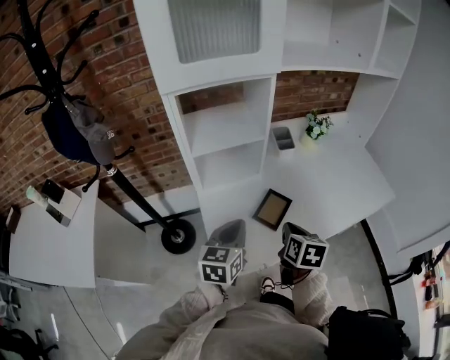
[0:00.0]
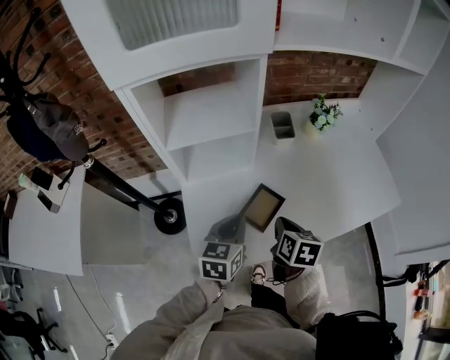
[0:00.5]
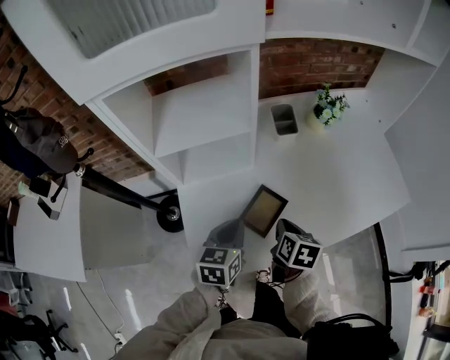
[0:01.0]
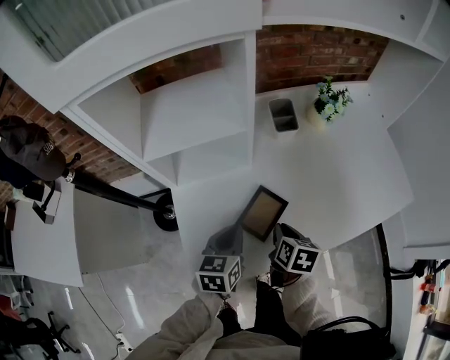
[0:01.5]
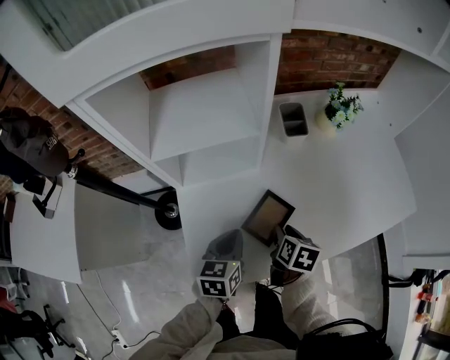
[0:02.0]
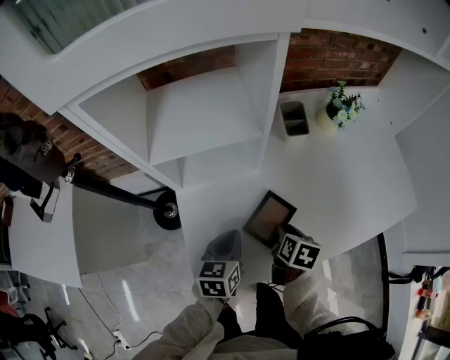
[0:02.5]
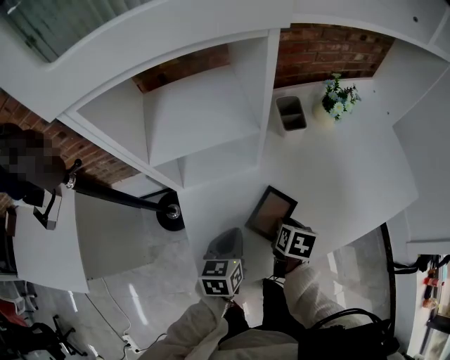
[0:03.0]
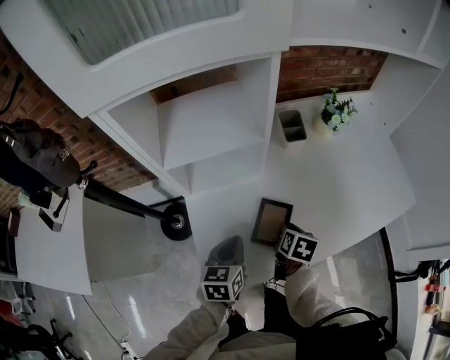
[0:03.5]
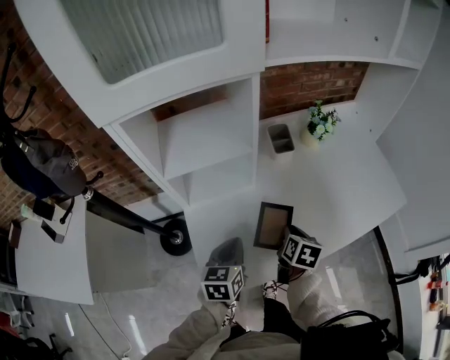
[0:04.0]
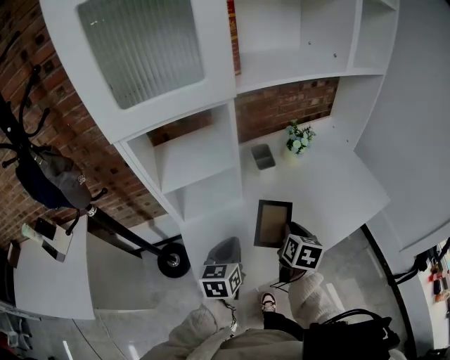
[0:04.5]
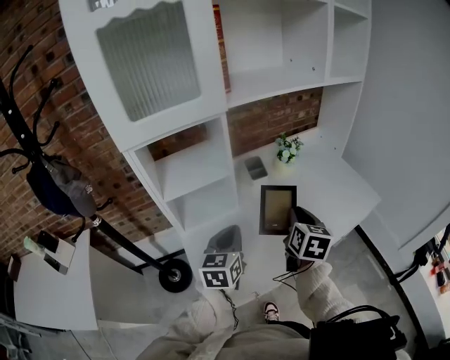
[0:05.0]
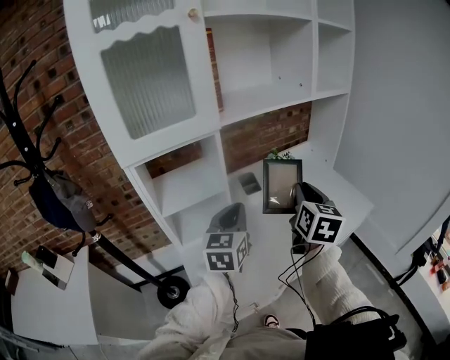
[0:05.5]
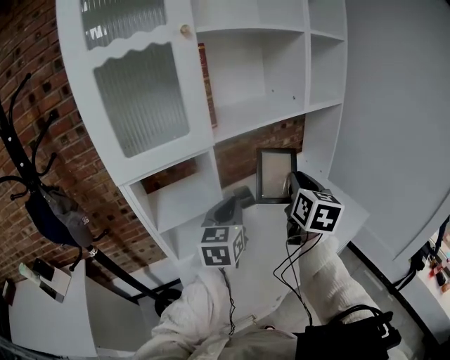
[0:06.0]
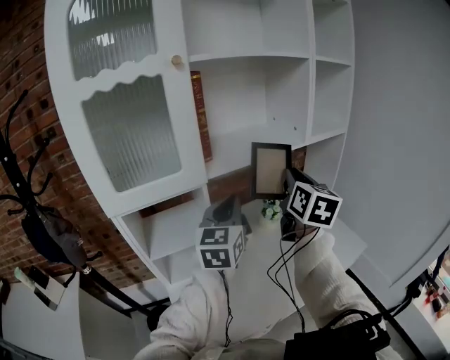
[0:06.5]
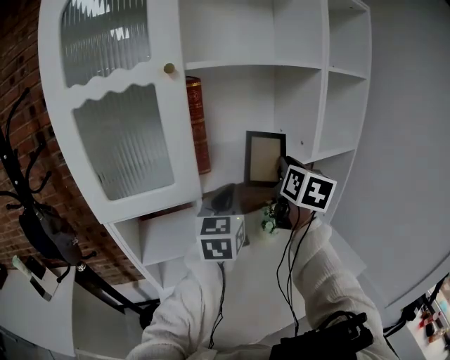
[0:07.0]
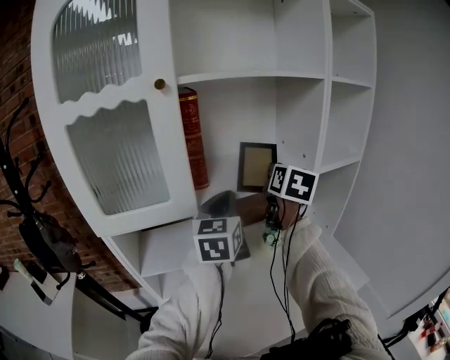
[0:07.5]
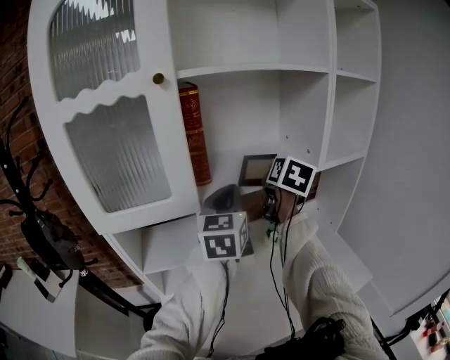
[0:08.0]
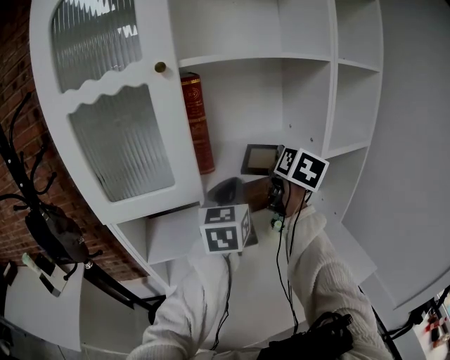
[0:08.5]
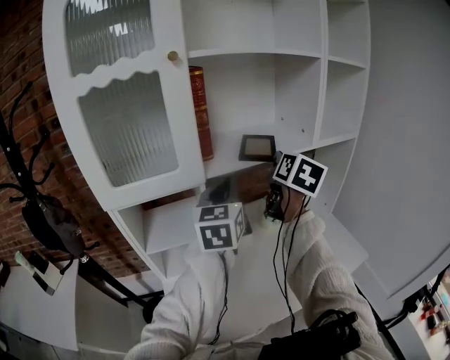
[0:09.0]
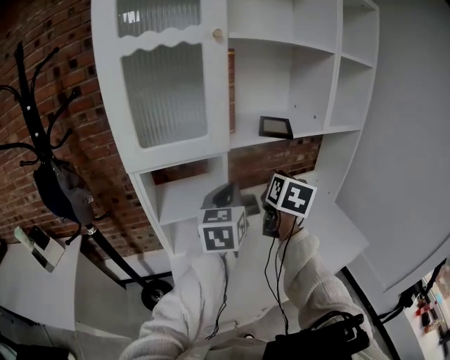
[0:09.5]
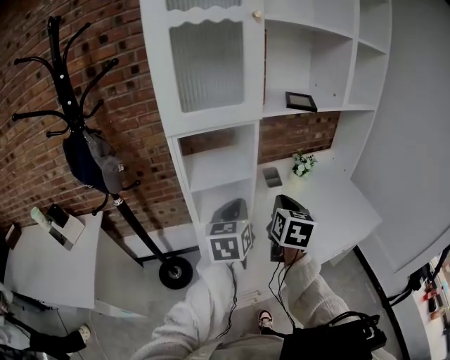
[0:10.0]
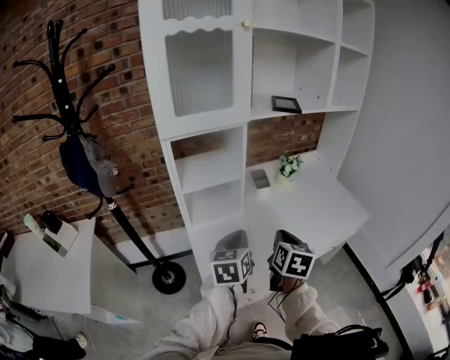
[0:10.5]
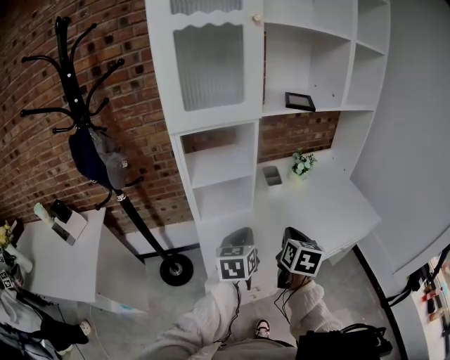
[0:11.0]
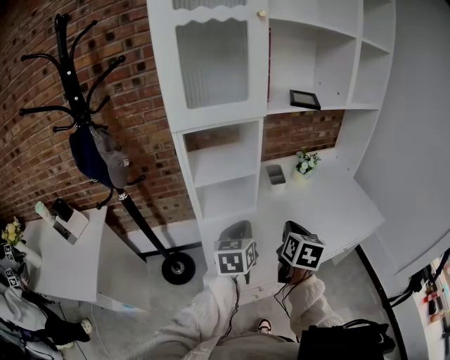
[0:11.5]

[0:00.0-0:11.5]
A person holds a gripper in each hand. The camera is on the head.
0:00.0 to 0:02.0: The two grippers go approximately 15 cm downward and forward. The right gripper opens up.
0:02.0 to 0:04.0: The right gripper moves some 5 cm.
0:04.0 to 0:06.0: Both grippers travel together upward, approximately 35 cm. The right gripper points its fingers about 40 degrees further upward. The left gripper changes its angle by approximately 30 degrees.
0:06.0 to 0:07.5: Both grippers travel together forward and upward, approximately 25 cm.
0:07.5 to 0:09.5: The left gripper travels backward, downward and to the left by about 15 cm, while the right gripper travels backward and downward by approximately 20 cm.
0:09.5 to 0:11.5: The left gripper moves downward and backward, approximately 25 cm, while the right gripper goes roughly 25 cm backward and downward.

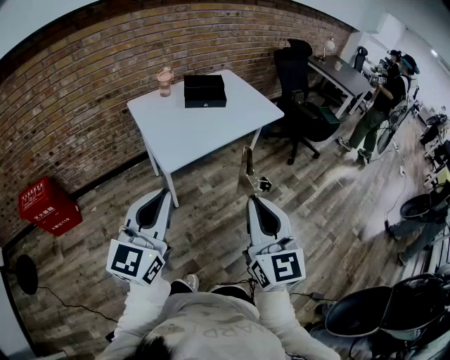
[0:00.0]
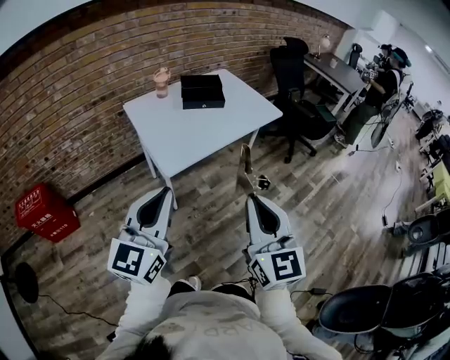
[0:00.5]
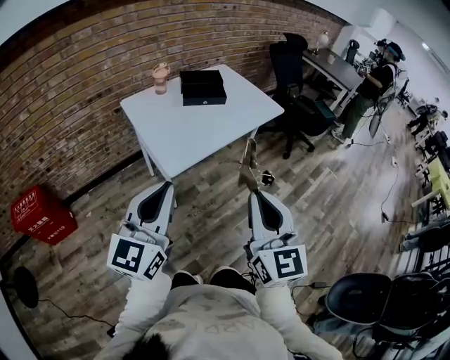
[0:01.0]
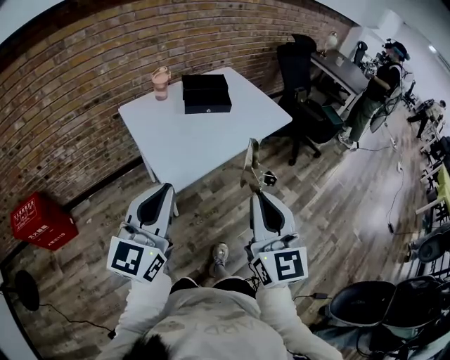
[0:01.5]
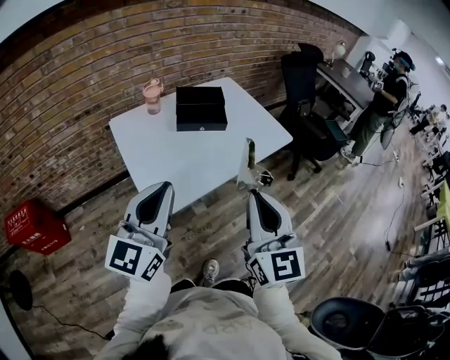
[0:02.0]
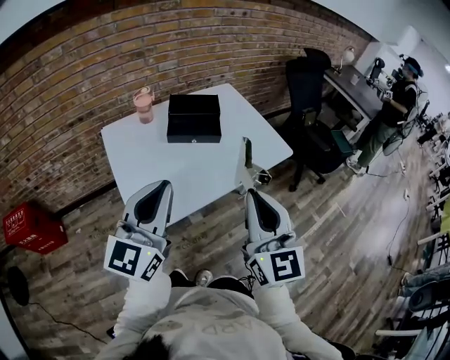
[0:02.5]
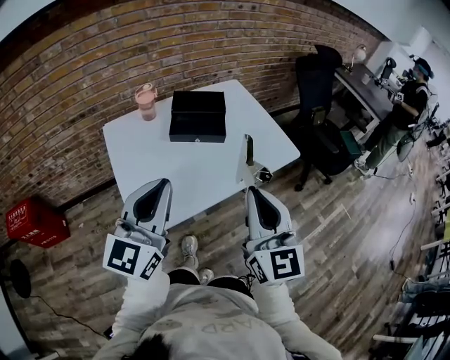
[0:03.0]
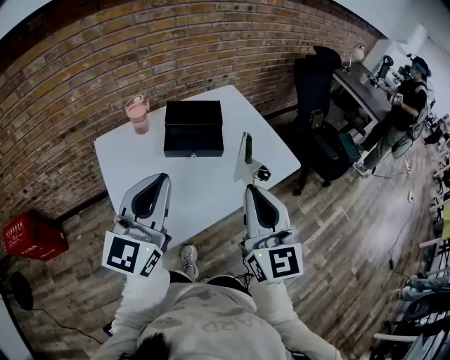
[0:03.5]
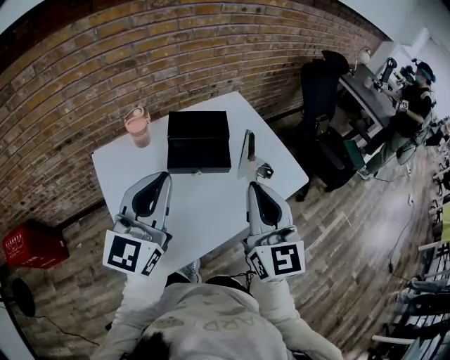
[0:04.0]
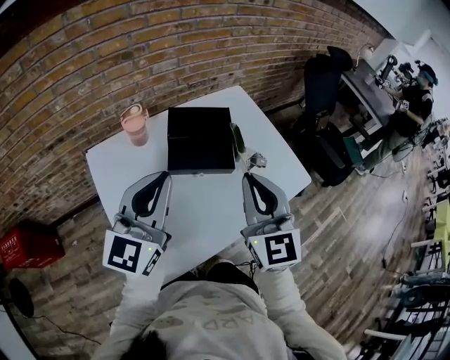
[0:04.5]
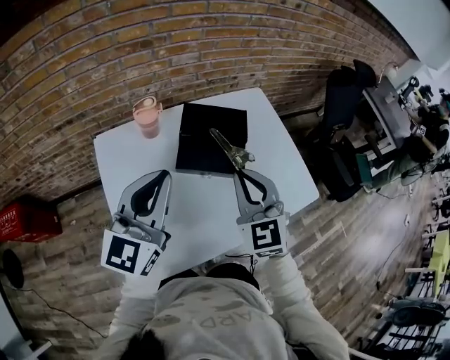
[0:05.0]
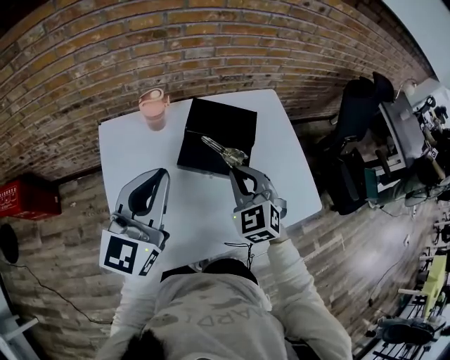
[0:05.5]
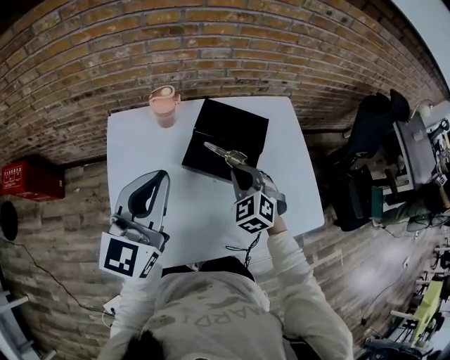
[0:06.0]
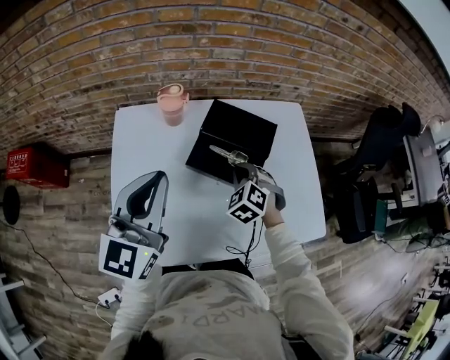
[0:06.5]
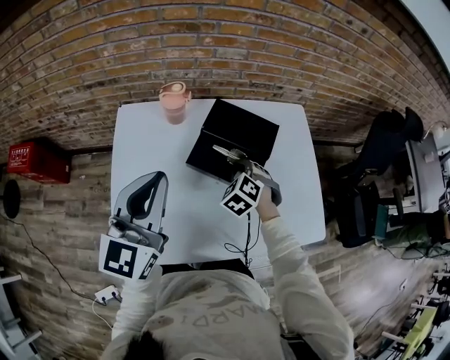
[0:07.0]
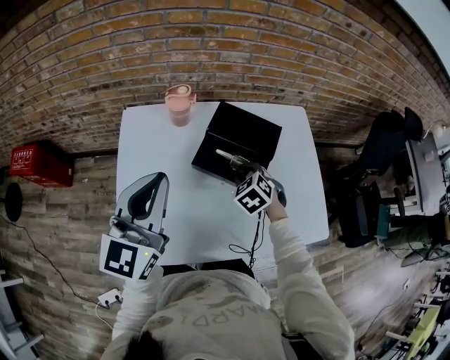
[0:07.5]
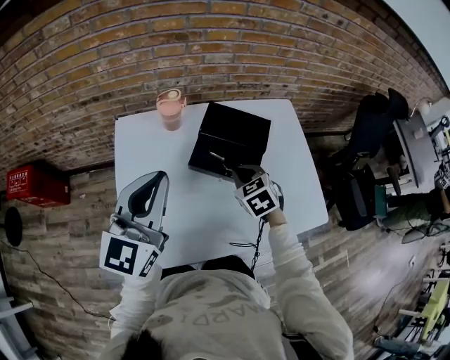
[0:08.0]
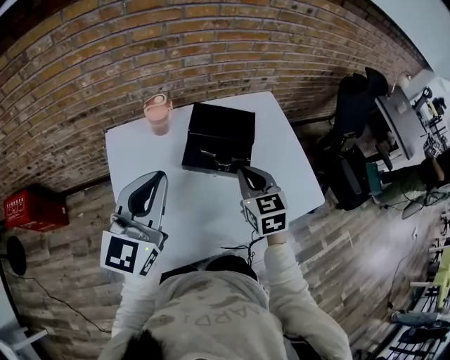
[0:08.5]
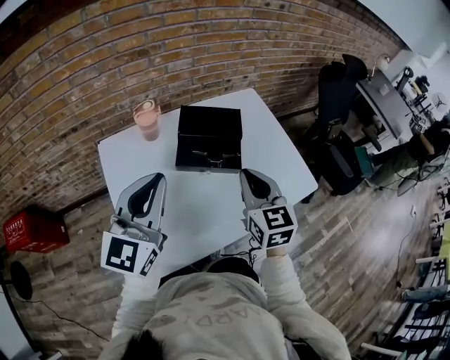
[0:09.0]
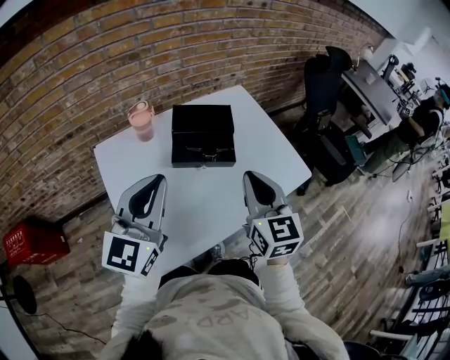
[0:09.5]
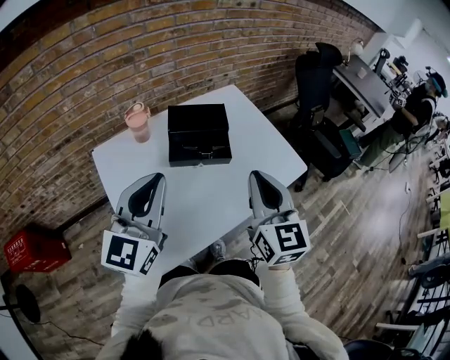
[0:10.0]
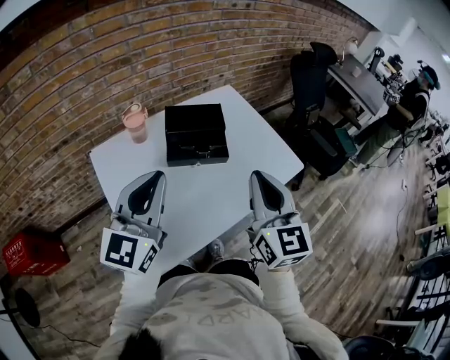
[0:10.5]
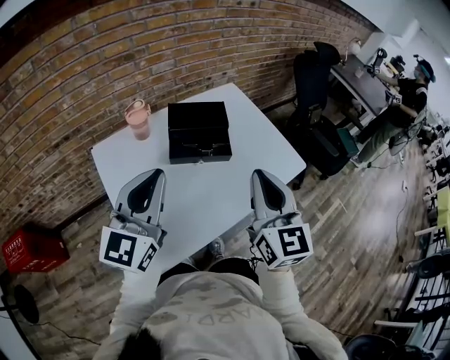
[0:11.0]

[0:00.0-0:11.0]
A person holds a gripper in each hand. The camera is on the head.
0:00.0 to 0:02.0: Both grippers travel together forward, approximately 25 cm.
0:02.0 to 0:03.5: Both grippers move forward, roughly 20 cm.
0:03.5 to 0:05.5: The left gripper goes roughly 15 cm forward; the right gripper is displaced forward and downward by approximately 30 cm, and points its fingers approximately 30 degrees further downward.
0:05.5 to 0:07.5: The right gripper shifts roughly 15 cm downward and forward, and changes its angle by roughly 30 degrees.
0:07.5 to 0:09.0: The right gripper heads upward and backward, covering some 25 cm, and angles its fingers upward, by roughly 40 degrees. Meanwhile the left gripper turns by roughly 20 degrees.
0:09.0 to 0:11.0: The right gripper moves backward and upward, approximately 15 cm.

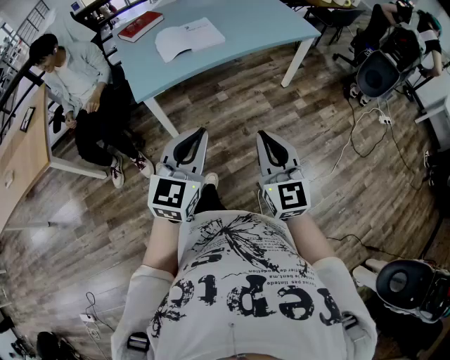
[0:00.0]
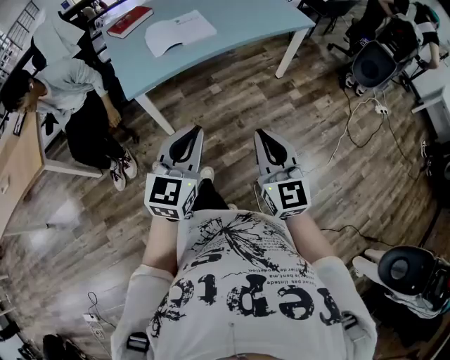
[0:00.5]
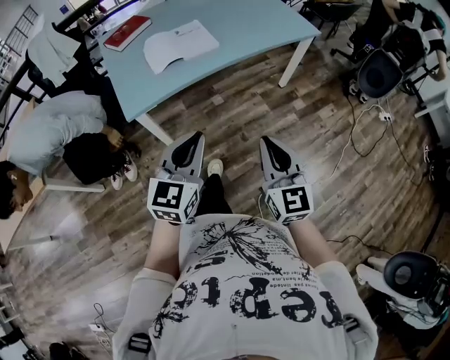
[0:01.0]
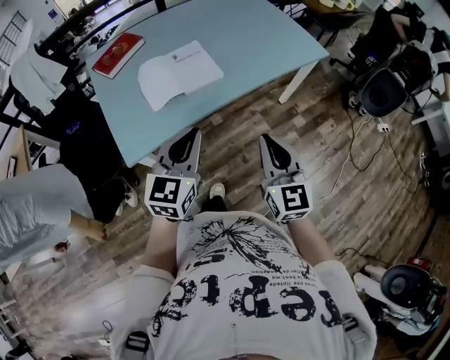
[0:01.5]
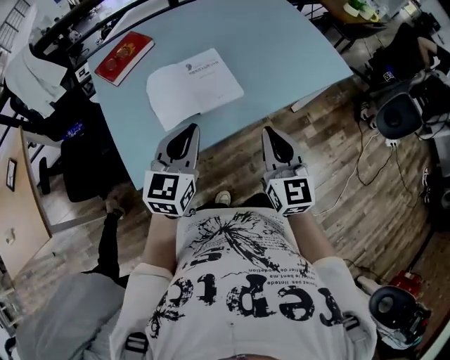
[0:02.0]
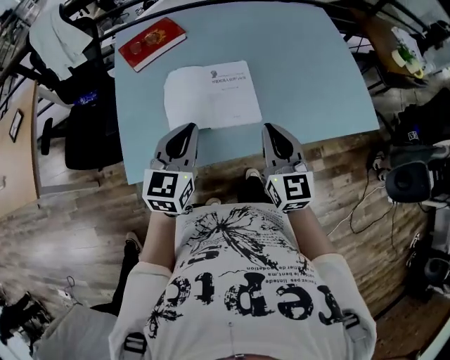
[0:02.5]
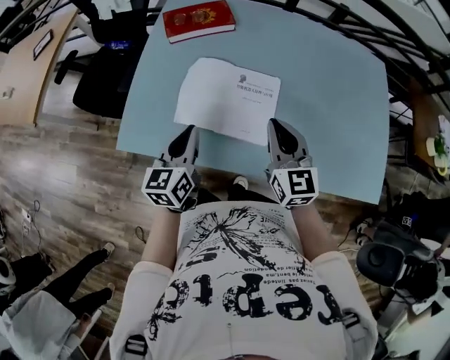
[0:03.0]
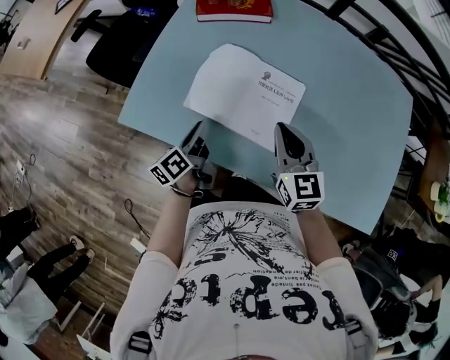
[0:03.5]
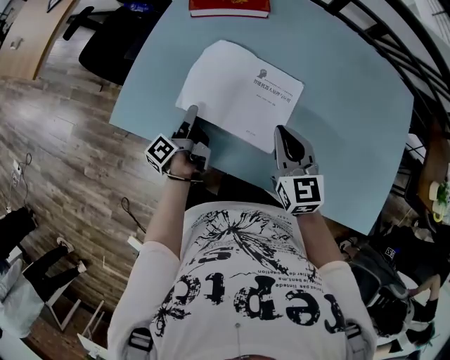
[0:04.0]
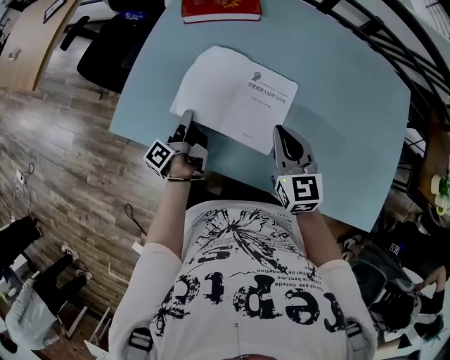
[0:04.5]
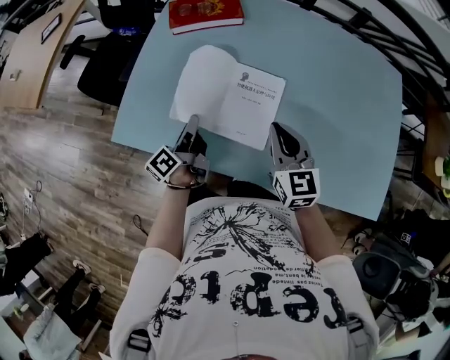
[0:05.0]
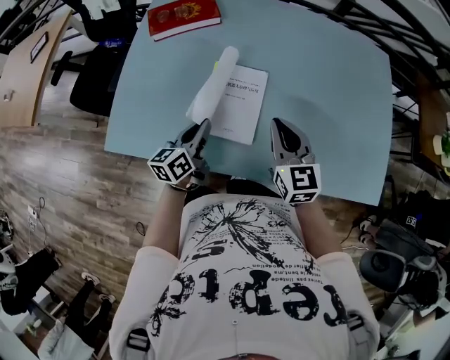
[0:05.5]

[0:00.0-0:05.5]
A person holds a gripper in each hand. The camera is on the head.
0:00.0 to 0:02.0: The two grippers travel together, forward, some 50 cm.
0:02.0 to 0:03.5: The right gripper ends up some 30 cm from where it was, and changes its angle by some 50 degrees. The left gripper shifts roughly 20 cm downward, and rotates roughly 90 degrees.
0:03.5 to 0:05.5: The grippers both shift to the right by about 10 cm. The left gripper changes its angle by some 30 degrees, and opens, then closes again.
